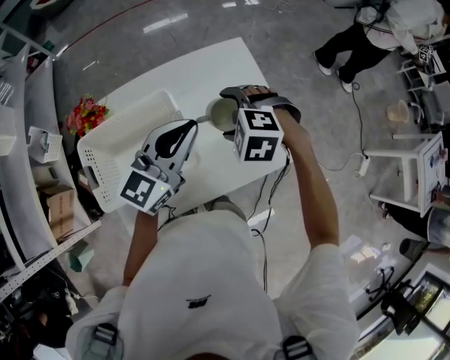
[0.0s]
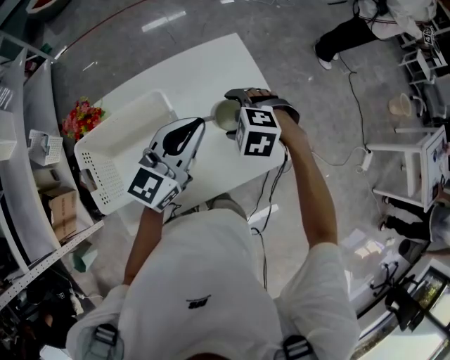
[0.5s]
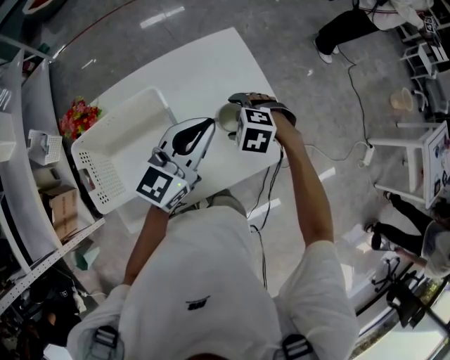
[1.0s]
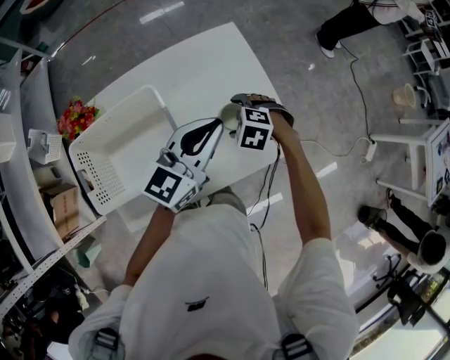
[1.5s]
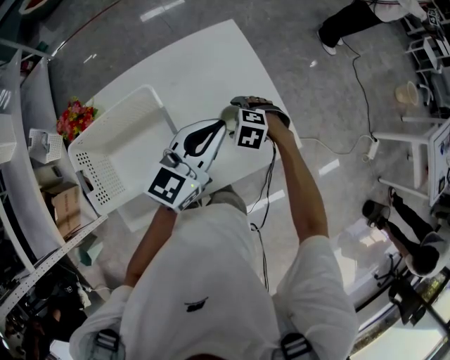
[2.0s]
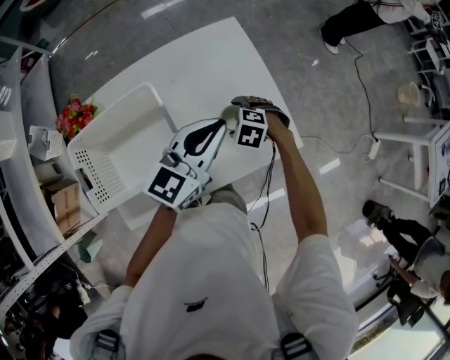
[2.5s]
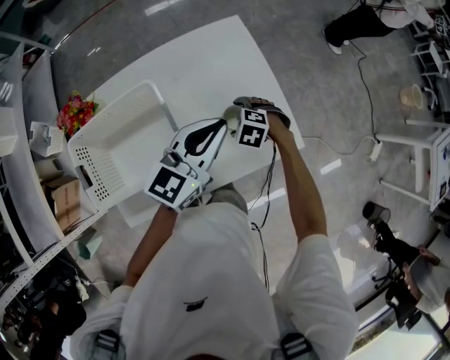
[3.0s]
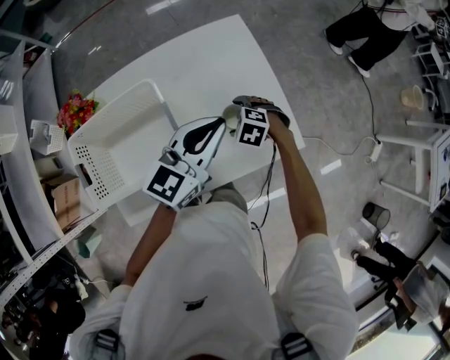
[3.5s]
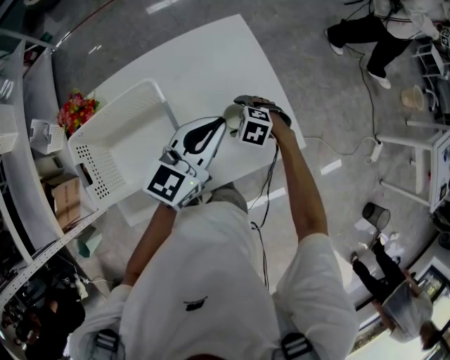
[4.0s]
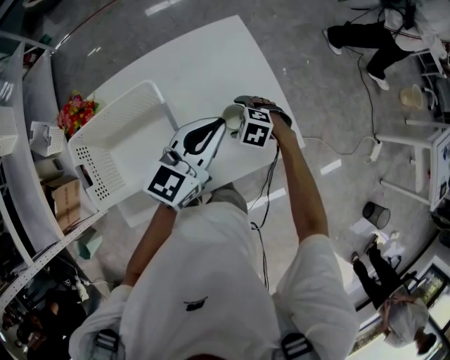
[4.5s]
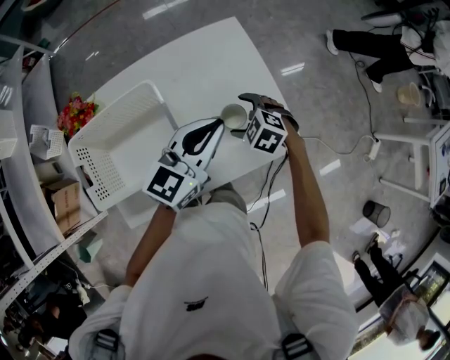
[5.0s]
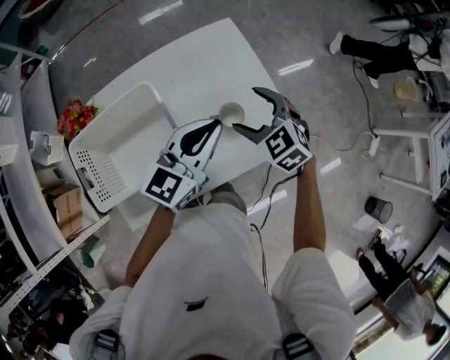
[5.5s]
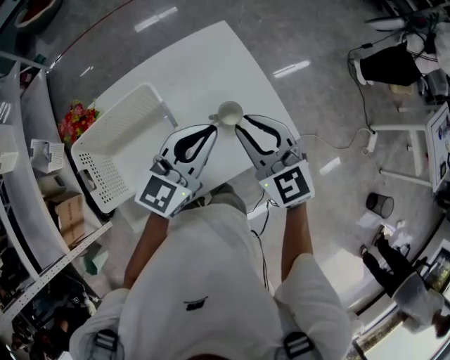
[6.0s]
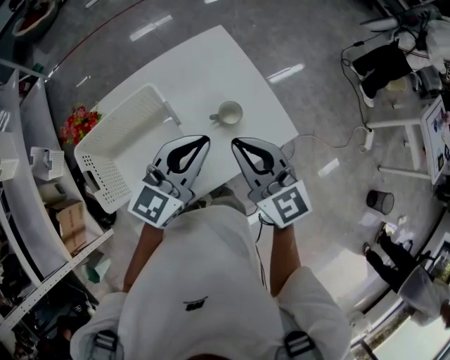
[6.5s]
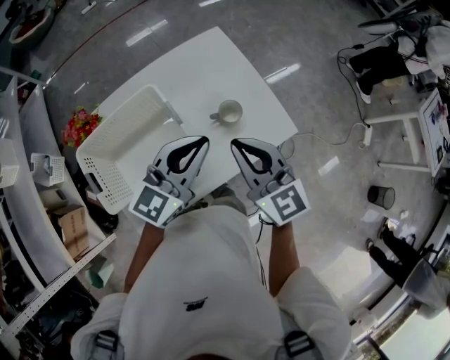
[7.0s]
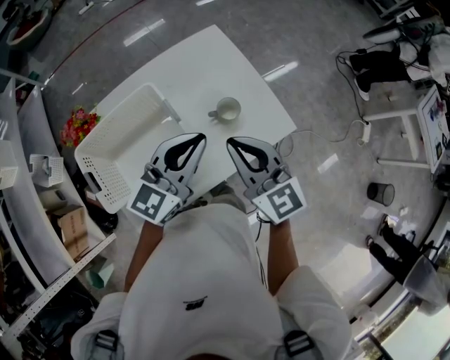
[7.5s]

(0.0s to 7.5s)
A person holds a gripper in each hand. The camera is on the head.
0.0s - 2.0s: The left gripper travels to the right and downward by some 10 cm. The right gripper travels downward by some 20 cm.
2.0s - 4.0s: The grippers move only a little.
4.0s - 5.5s: The right gripper shifts some 20 cm upward, and points its fingers about 30 degrees further upward.
5.5s - 7.5s: The right gripper shifts about 20 cm backward and upward, tips its fingers upward by some 30 degrees, and closes up. Meanwhile the left gripper heads backward, covering some 10 cm.

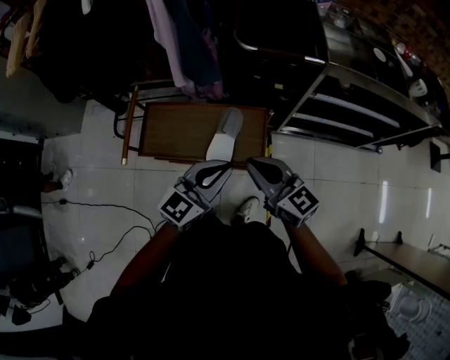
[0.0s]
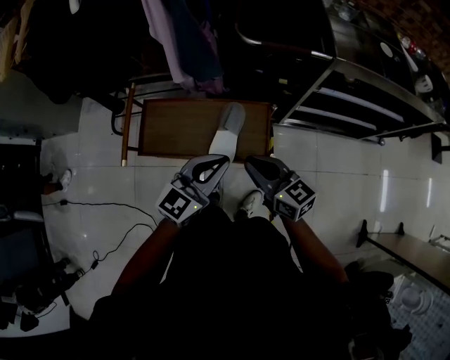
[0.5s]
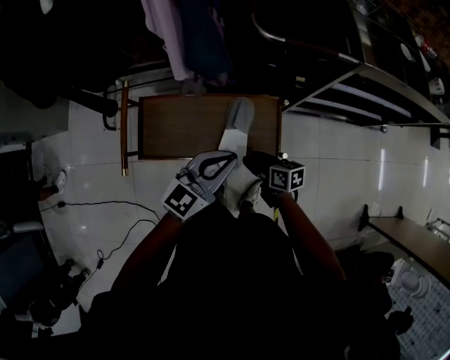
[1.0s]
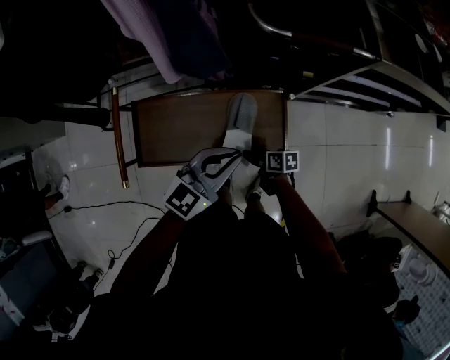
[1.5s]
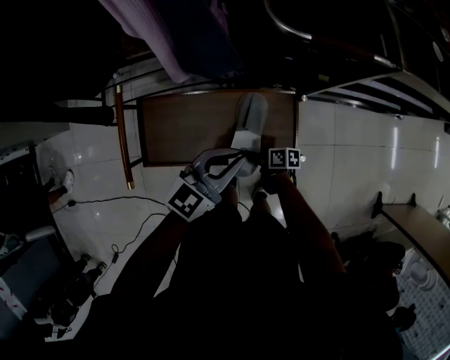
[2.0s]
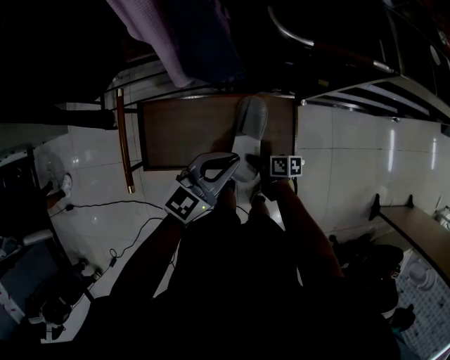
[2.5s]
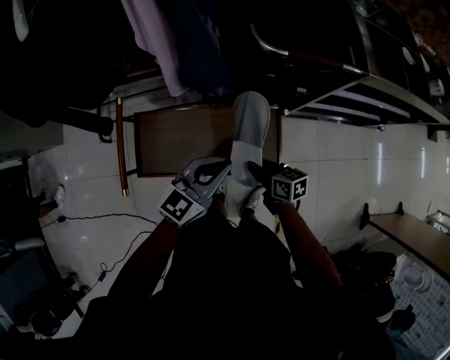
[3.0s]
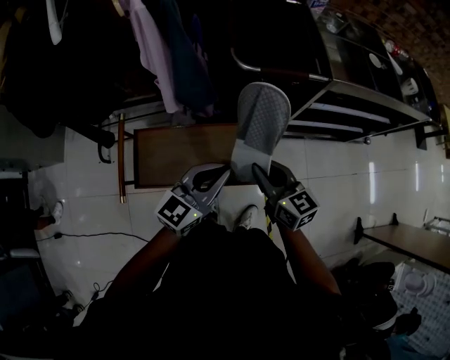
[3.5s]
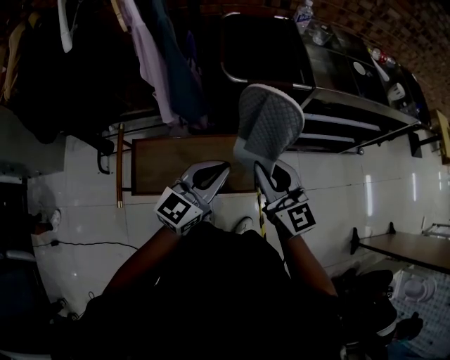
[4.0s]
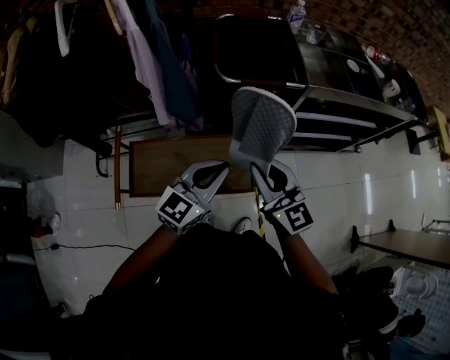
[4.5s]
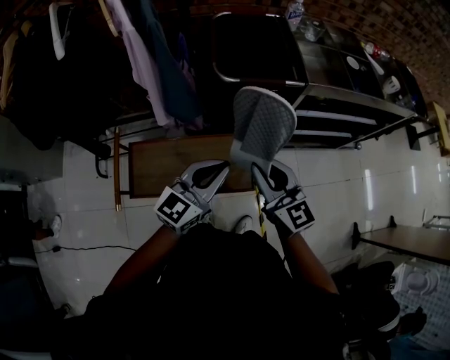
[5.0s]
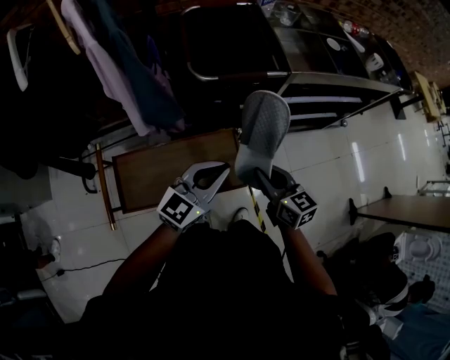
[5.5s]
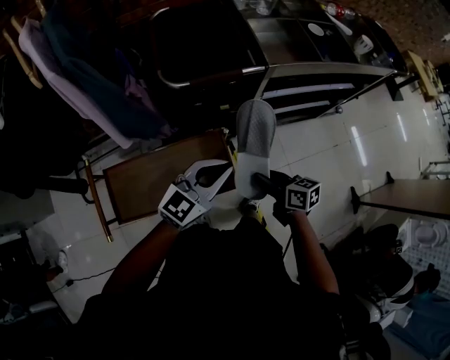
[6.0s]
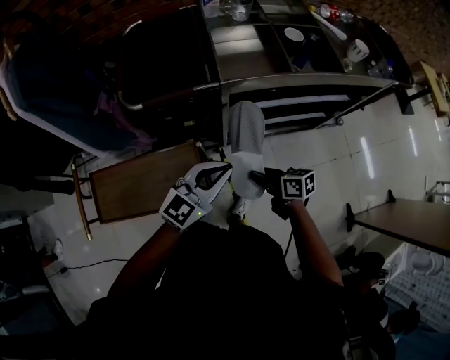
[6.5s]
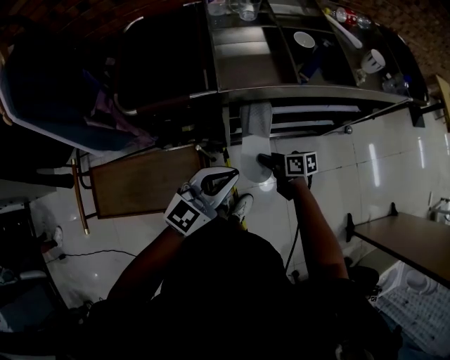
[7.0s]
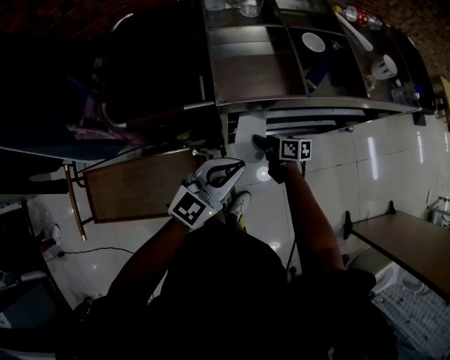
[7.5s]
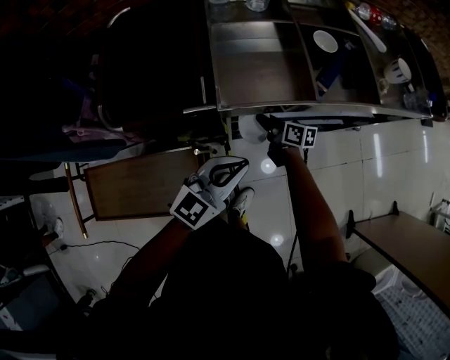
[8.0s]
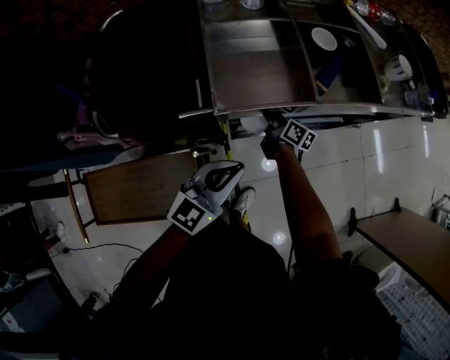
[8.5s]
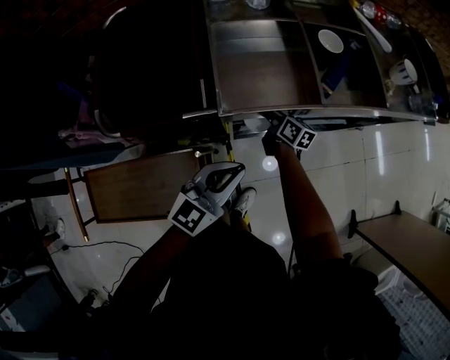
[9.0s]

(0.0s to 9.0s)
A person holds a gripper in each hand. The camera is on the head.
0.0s - 2.0s: The right gripper heads downward, covering about 40 cm, rotates around the line of its fingers by approximately 60 degrees, clockwise from behind, and opens up; the left gripper moves forward, downward and to the left, about 20 cm.
2.0s - 4.5s: The left gripper goes about 15 cm upward and to the right; the right gripper shifts approximately 50 cm upward, rotates around the line of its fingers by about 70 degrees, counterclockwise from behind, and closes.
4.5s - 7.0s: The right gripper goes roughly 50 cm to the right, downward and forward, and rotates around the line of its fingers by about 50 degrees, clockwise from behind, while the left gripper is displaced to the right and forward by roughly 35 cm.
7.0s - 9.0s: The right gripper shifts some 25 cm forward, rotates about 40 degrees, and opens; the left gripper goes roughly 10 cm forward and downward.

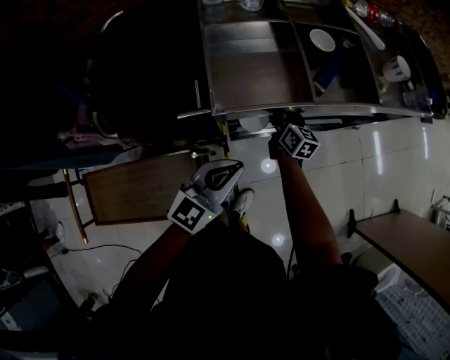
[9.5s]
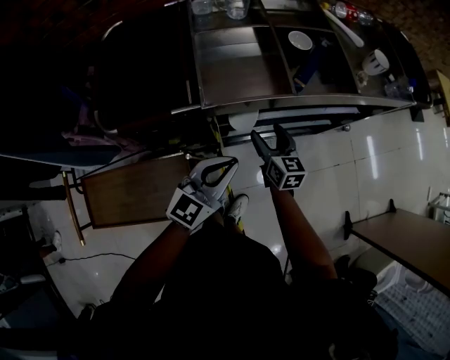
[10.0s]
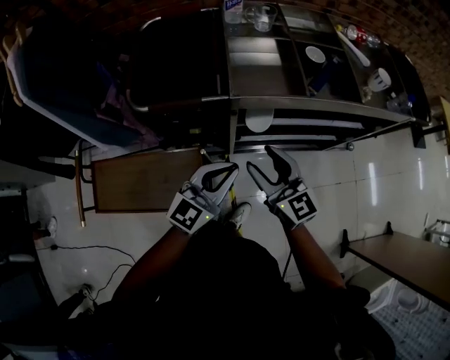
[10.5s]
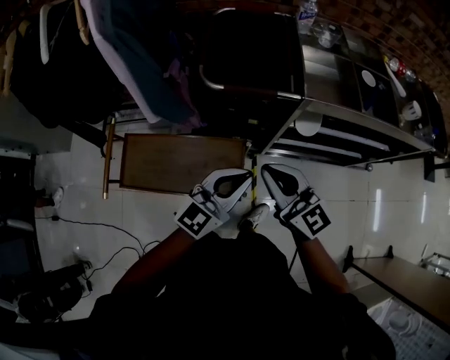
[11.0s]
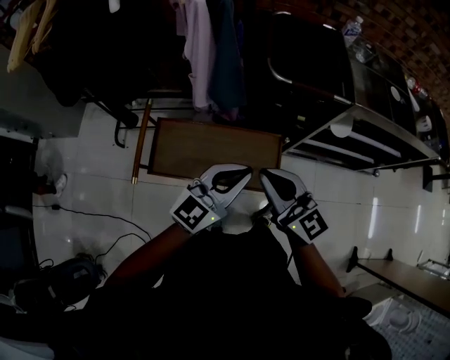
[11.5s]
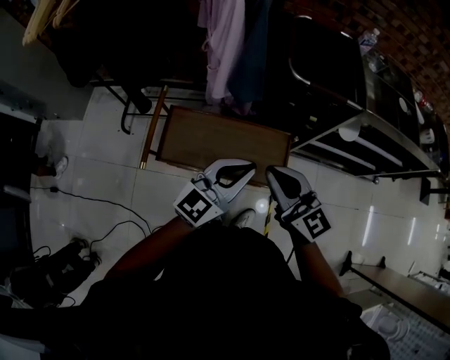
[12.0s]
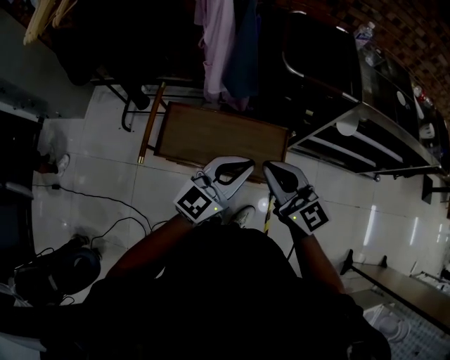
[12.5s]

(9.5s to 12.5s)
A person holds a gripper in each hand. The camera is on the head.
9.5s - 11.0s: The left gripper ends up roughly 25 cm from where it was; the right gripper changes place by about 50 cm, changes its angle by some 50 degrees, and closes up.
11.0s - 12.5s: The right gripper goes approximately 25 cm to the left and backward. The left gripper heads to the left, covering roughly 20 cm.

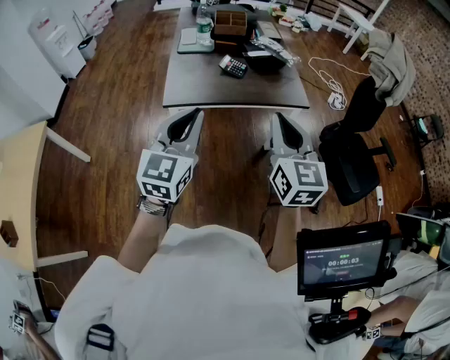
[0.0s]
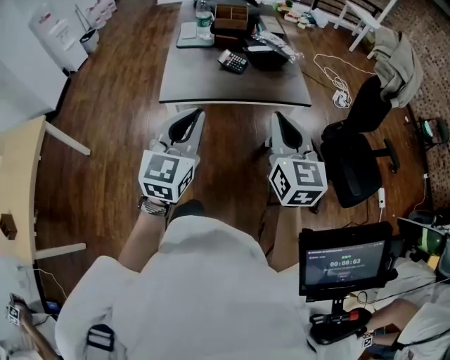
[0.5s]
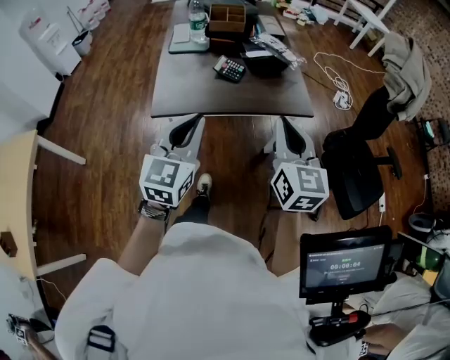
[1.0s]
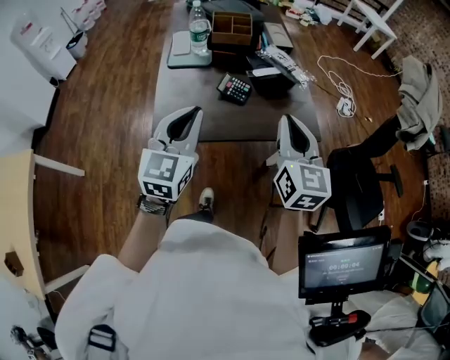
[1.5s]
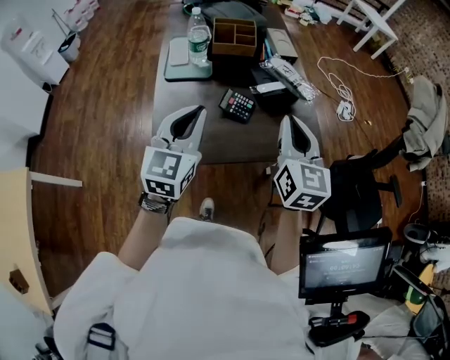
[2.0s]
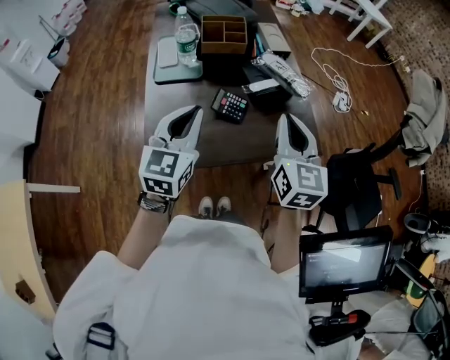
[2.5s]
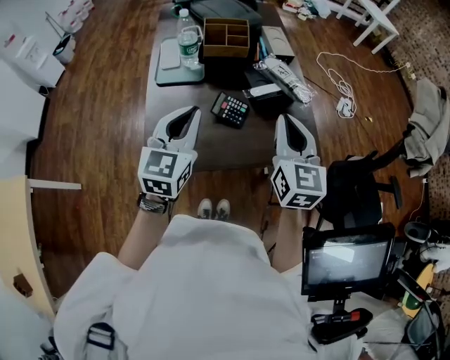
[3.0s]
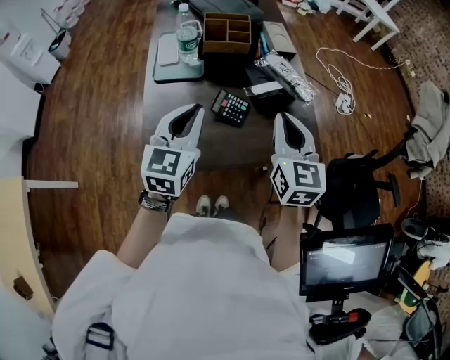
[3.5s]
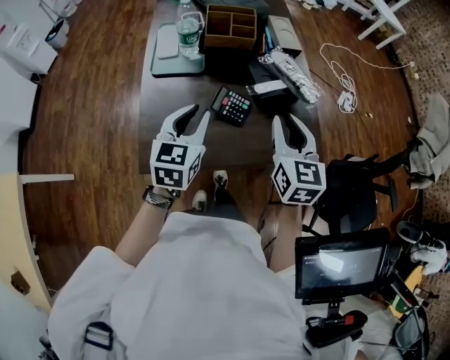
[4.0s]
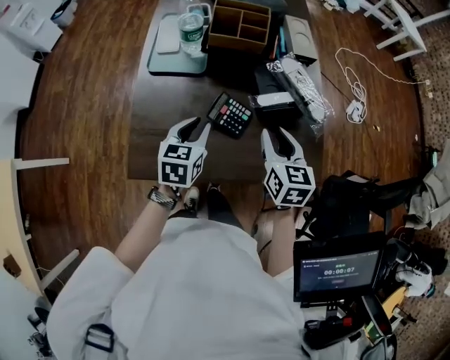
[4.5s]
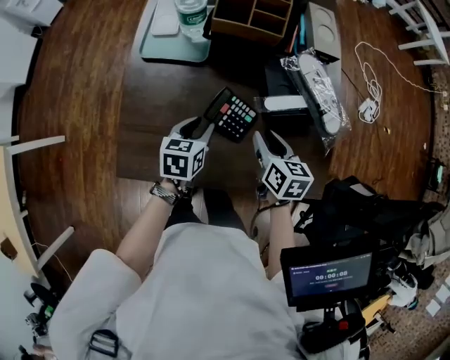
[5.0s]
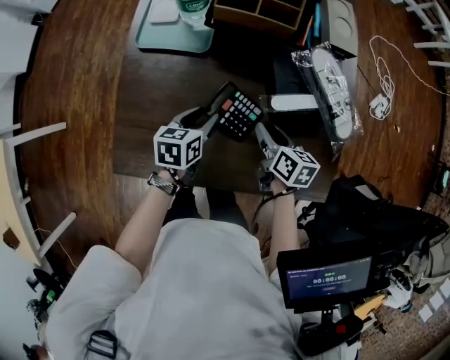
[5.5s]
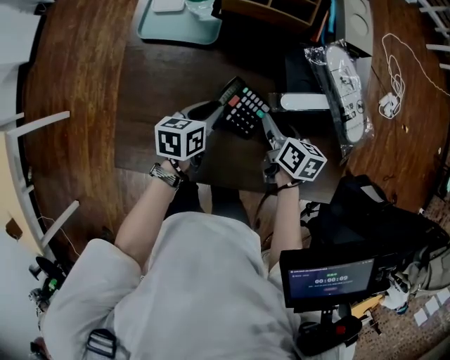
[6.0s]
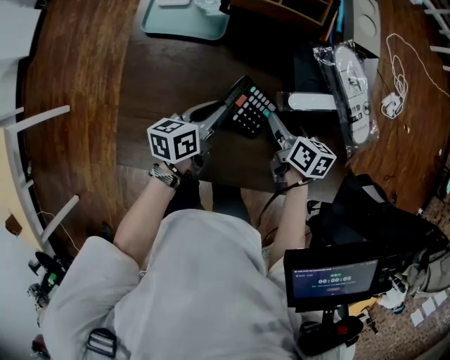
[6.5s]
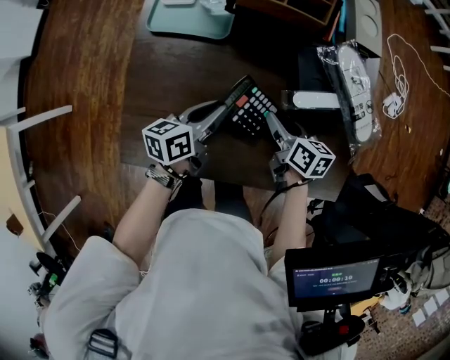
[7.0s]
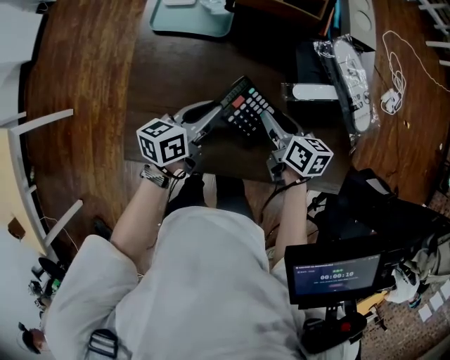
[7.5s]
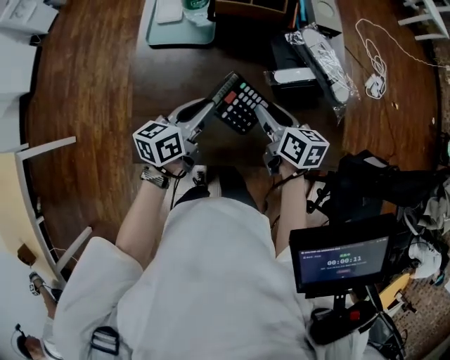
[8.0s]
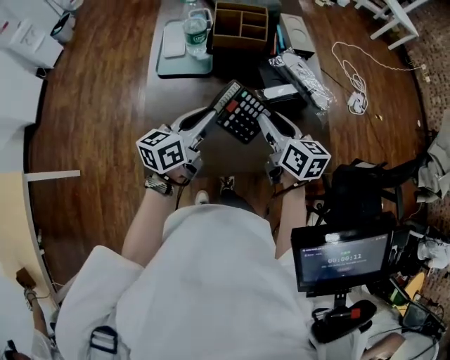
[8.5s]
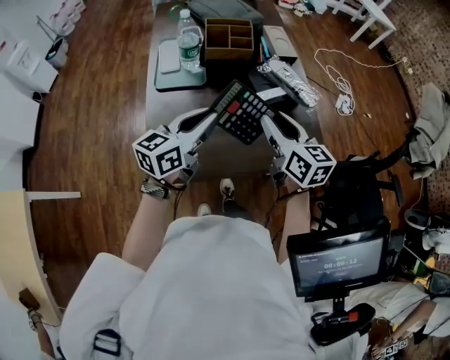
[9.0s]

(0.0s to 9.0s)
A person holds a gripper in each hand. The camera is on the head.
0.0s - 2.0s: The grippers both shift forward by roughly 35 cm.
2.0s - 4.5s: The grippers both shift downward and forward by roughly 25 cm. The left gripper turns by roughly 30 degrees, and opens up. The right gripper changes its angle by about 20 degrees, and opens.
4.5s - 7.0s: The right gripper moves downward, roughly 20 cm, and turns by roughly 40 degrees; the left gripper is displaced downward by roughly 10 cm, and changes its angle by about 40 degrees.
7.0s - 9.0s: The right gripper goes some 30 cm upward and backward, and changes its angle by roughly 40 degrees, while the left gripper is displaced upward by some 25 cm, and changes its angle by roughly 40 degrees.
